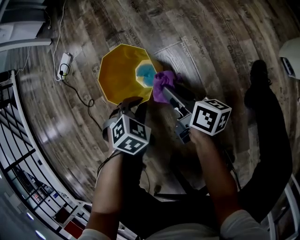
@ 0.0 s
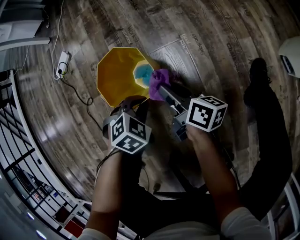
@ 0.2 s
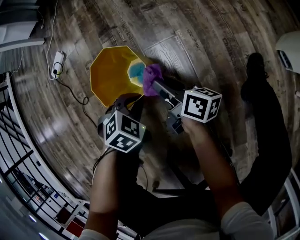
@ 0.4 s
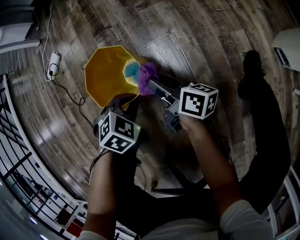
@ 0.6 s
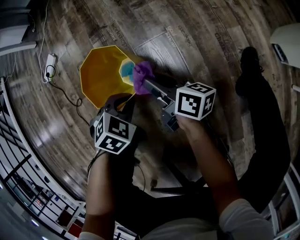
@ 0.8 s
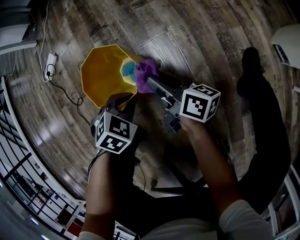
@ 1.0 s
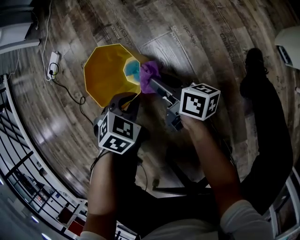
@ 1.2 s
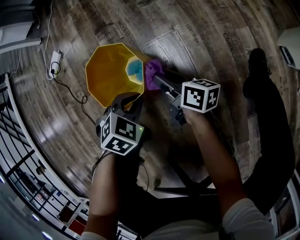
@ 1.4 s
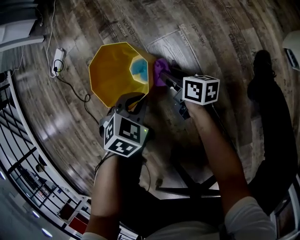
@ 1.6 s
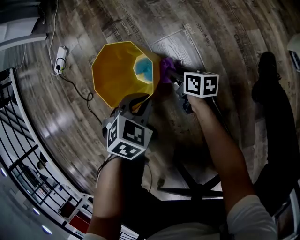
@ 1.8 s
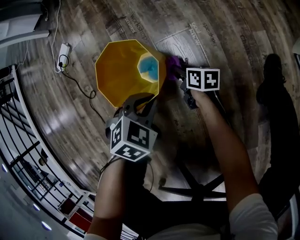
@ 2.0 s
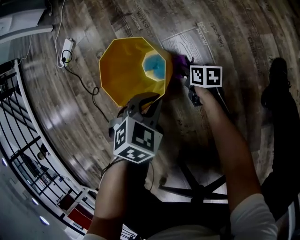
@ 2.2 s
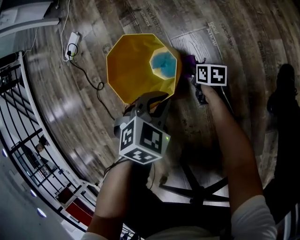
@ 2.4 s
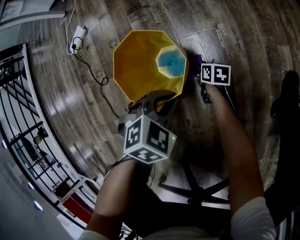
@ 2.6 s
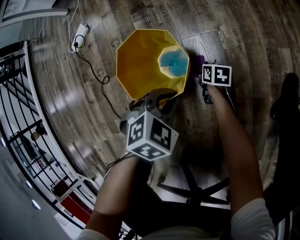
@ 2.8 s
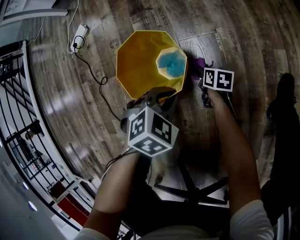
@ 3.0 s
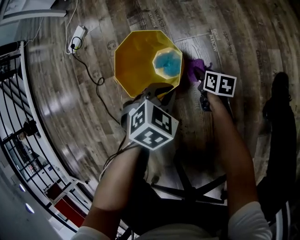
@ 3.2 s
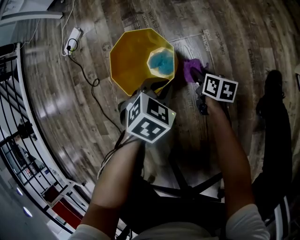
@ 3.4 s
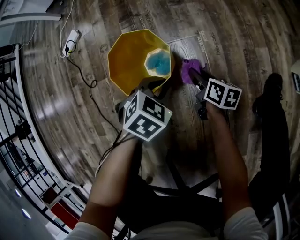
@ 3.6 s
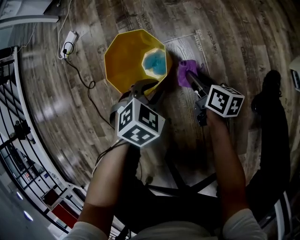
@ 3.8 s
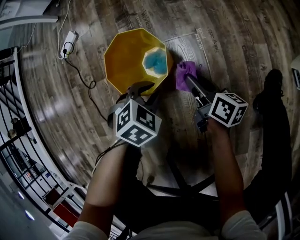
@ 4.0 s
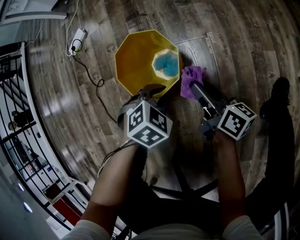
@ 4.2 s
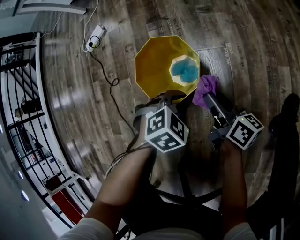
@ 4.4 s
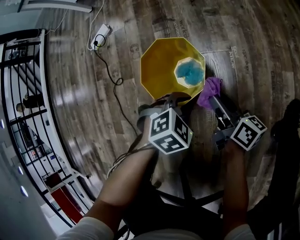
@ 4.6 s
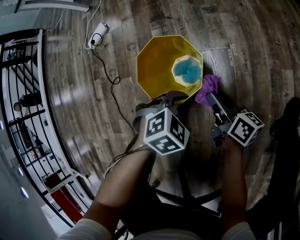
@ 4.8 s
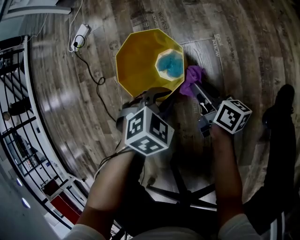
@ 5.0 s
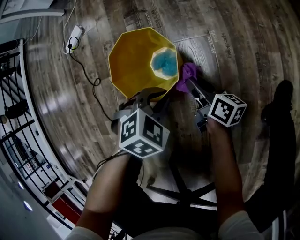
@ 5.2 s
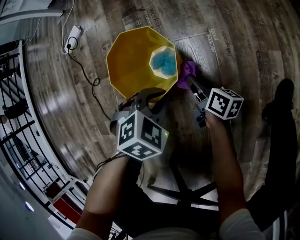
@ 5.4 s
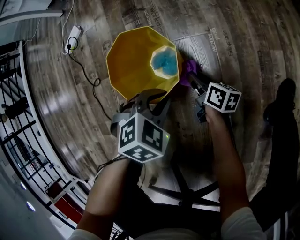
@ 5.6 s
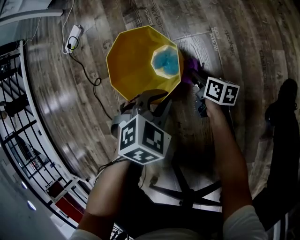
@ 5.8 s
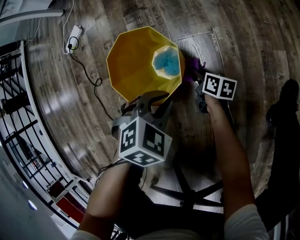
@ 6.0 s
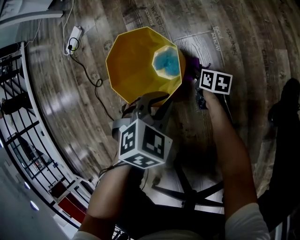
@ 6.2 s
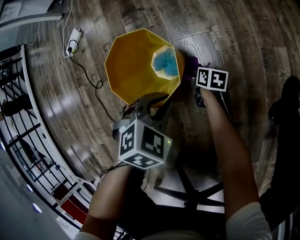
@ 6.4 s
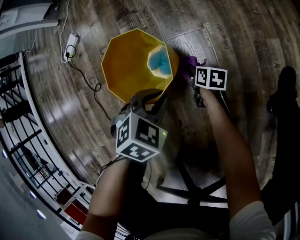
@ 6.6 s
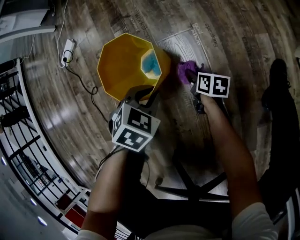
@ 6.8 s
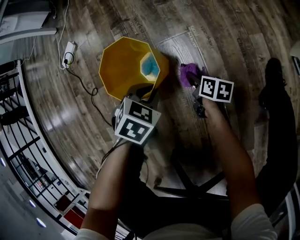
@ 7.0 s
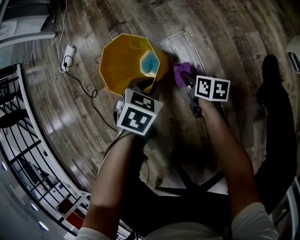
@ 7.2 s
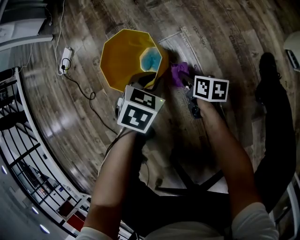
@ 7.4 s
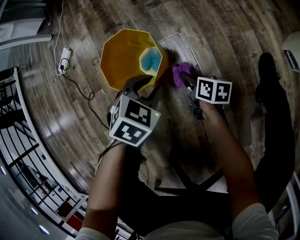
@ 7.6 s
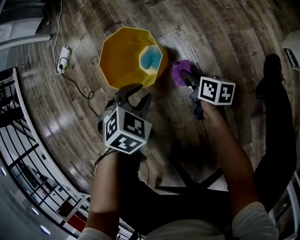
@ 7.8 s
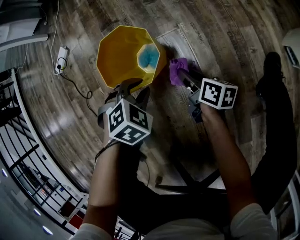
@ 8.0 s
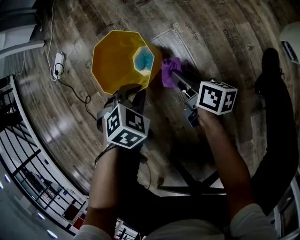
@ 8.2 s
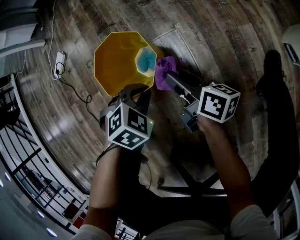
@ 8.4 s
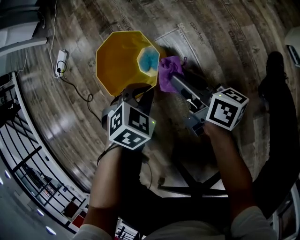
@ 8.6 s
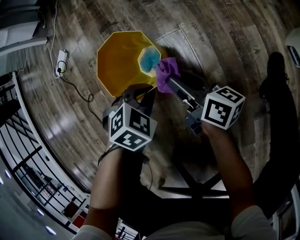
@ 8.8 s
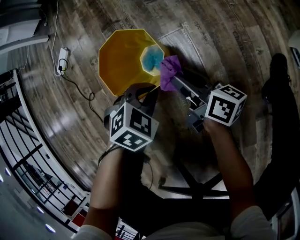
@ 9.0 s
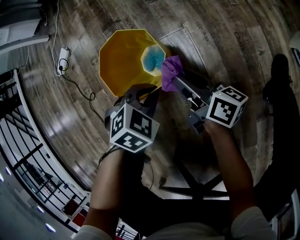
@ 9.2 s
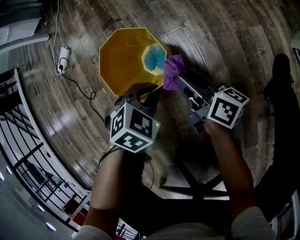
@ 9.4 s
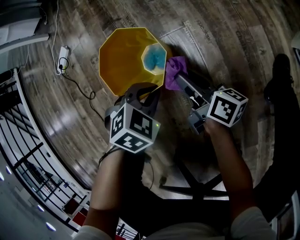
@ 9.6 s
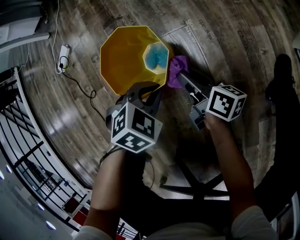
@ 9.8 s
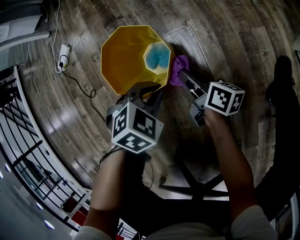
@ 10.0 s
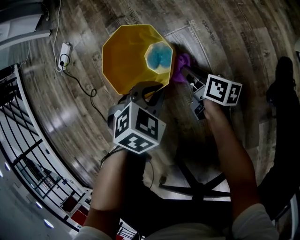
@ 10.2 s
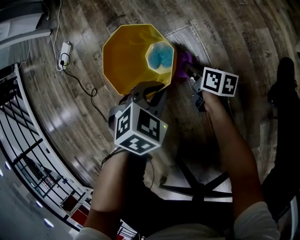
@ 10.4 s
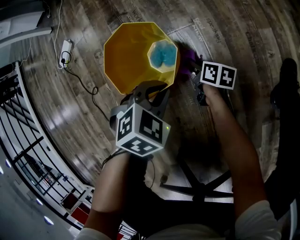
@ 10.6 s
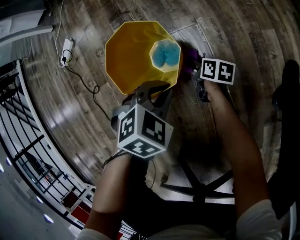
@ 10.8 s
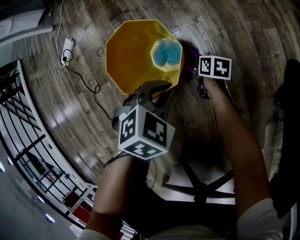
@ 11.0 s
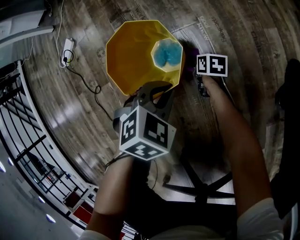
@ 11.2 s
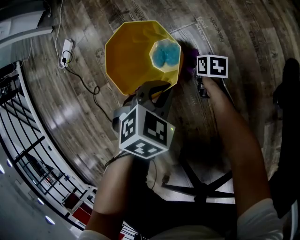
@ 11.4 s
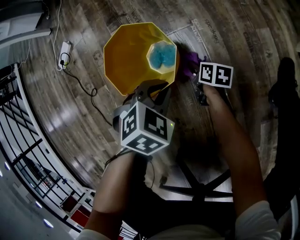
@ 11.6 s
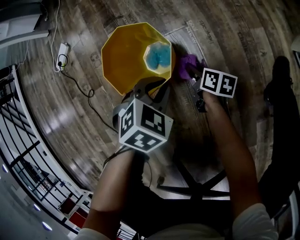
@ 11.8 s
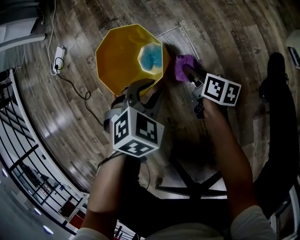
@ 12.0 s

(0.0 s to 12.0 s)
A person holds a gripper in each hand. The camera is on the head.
0.0 s - 1.6 s: The right gripper goes some 10 cm downward.
1.6 s - 3.0 s: The right gripper heads downward, covering some 15 cm, and changes its angle by about 30 degrees.
3.0 s - 4.4 s: The right gripper goes approximately 25 cm upward, and tilts its fingers some 40 degrees upward.
4.4 s - 6.0 s: The right gripper moves downward, some 20 cm, and changes its angle by approximately 30 degrees.
6.0 s - 7.6 s: The left gripper changes place by some 5 cm. Meanwhile the right gripper heads upward and to the right, covering some 10 cm.
7.6 s - 9.0 s: The right gripper is displaced upward by approximately 10 cm, and swivels approximately 30 degrees. The left gripper closes up.
9.0 s - 10.4 s: The right gripper is displaced downward by some 15 cm, and changes its angle by about 20 degrees.
10.4 s - 12.0 s: The right gripper goes downward and returns, roughly 10 cm each way. Meanwhile the left gripper opens its fingers.

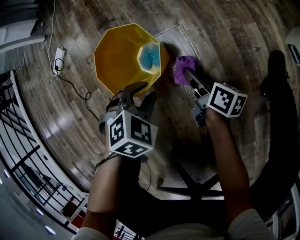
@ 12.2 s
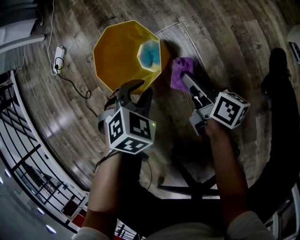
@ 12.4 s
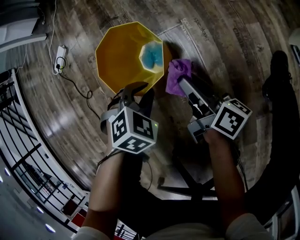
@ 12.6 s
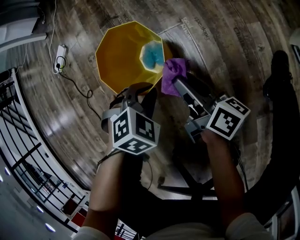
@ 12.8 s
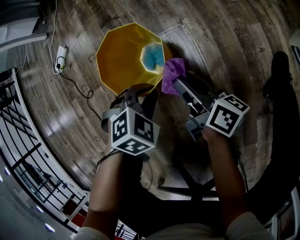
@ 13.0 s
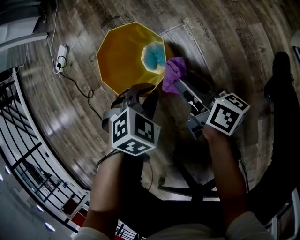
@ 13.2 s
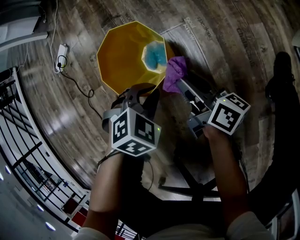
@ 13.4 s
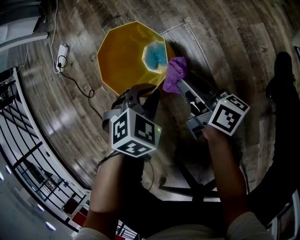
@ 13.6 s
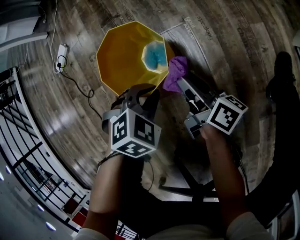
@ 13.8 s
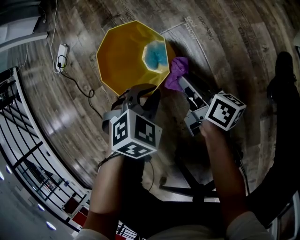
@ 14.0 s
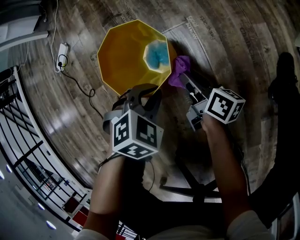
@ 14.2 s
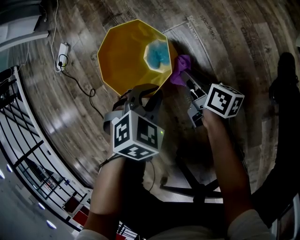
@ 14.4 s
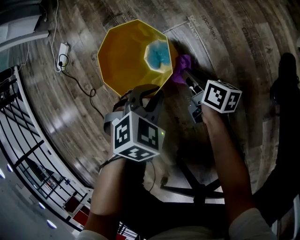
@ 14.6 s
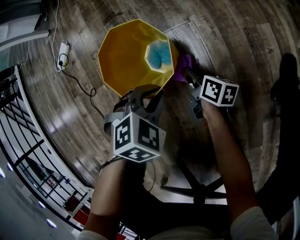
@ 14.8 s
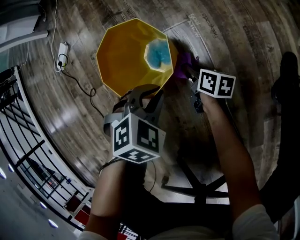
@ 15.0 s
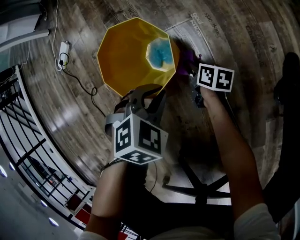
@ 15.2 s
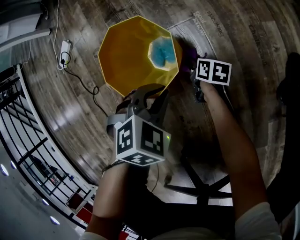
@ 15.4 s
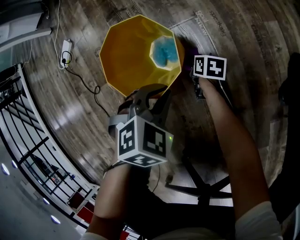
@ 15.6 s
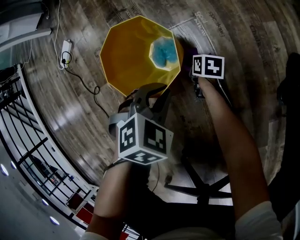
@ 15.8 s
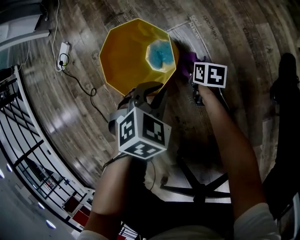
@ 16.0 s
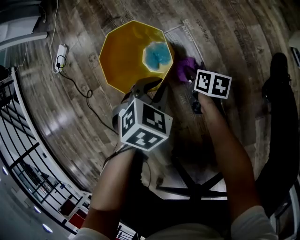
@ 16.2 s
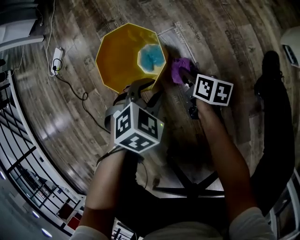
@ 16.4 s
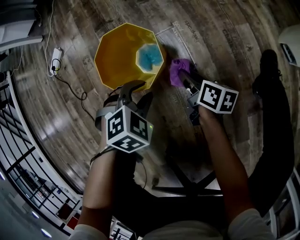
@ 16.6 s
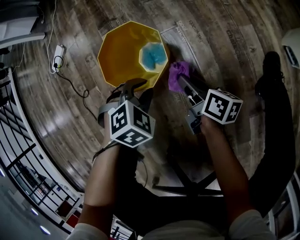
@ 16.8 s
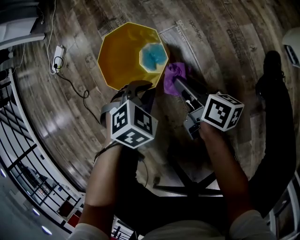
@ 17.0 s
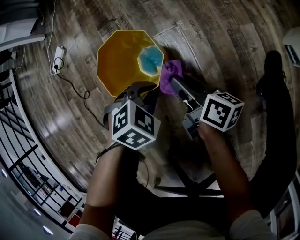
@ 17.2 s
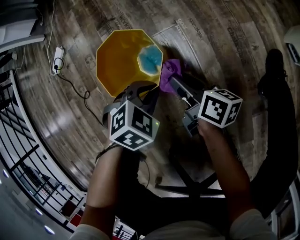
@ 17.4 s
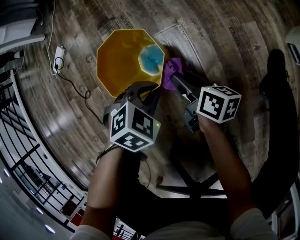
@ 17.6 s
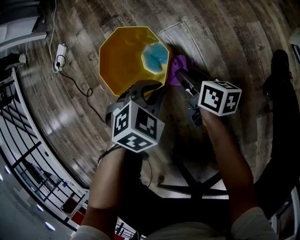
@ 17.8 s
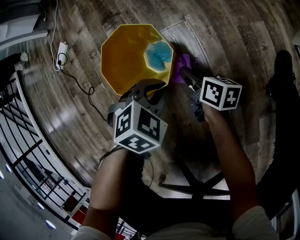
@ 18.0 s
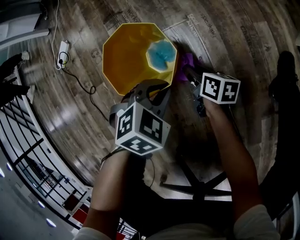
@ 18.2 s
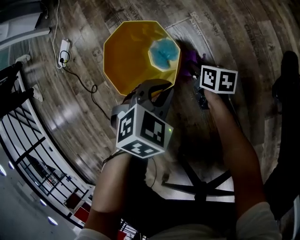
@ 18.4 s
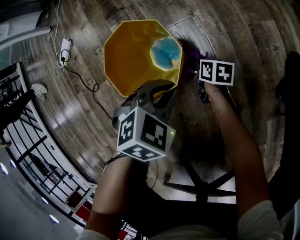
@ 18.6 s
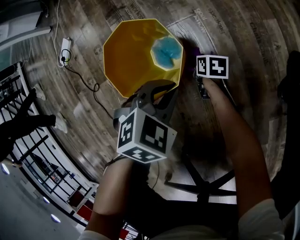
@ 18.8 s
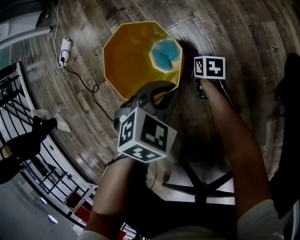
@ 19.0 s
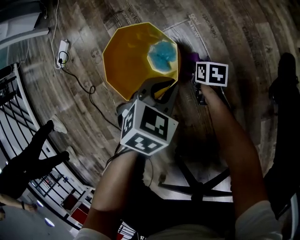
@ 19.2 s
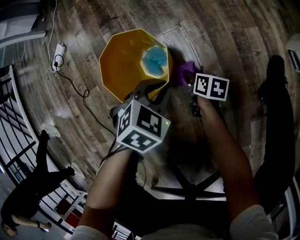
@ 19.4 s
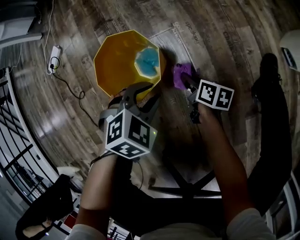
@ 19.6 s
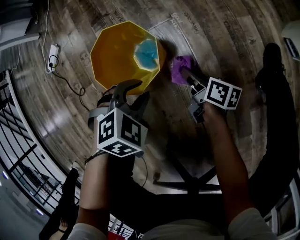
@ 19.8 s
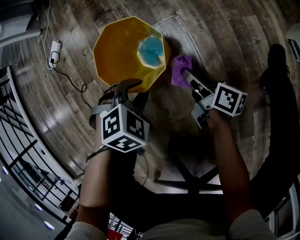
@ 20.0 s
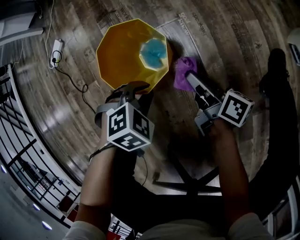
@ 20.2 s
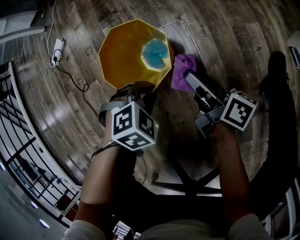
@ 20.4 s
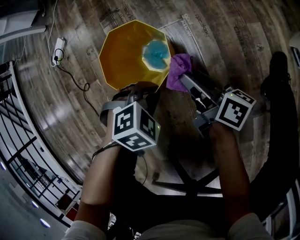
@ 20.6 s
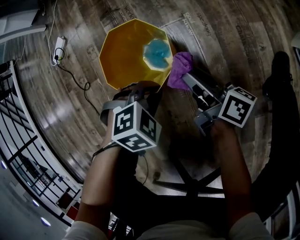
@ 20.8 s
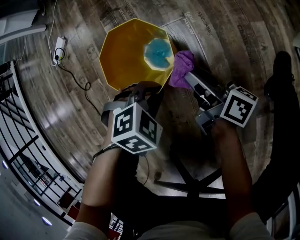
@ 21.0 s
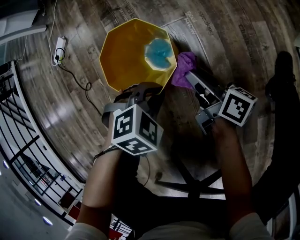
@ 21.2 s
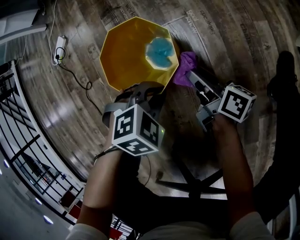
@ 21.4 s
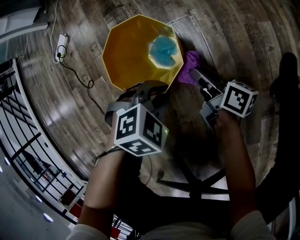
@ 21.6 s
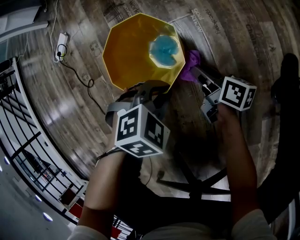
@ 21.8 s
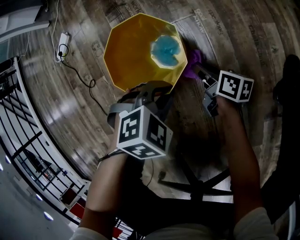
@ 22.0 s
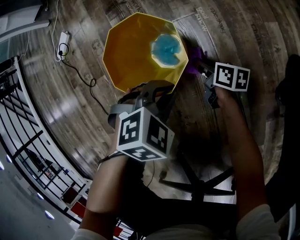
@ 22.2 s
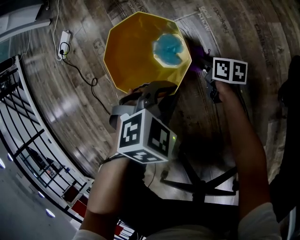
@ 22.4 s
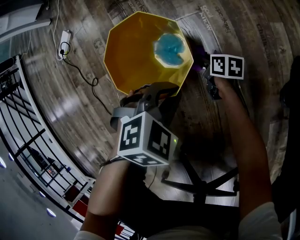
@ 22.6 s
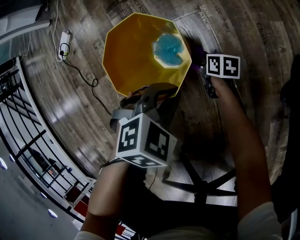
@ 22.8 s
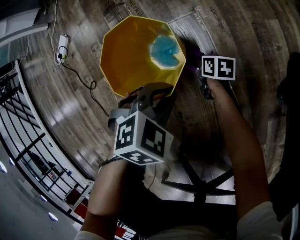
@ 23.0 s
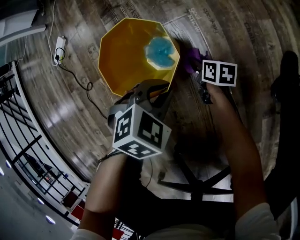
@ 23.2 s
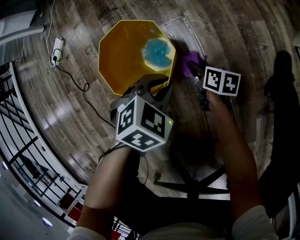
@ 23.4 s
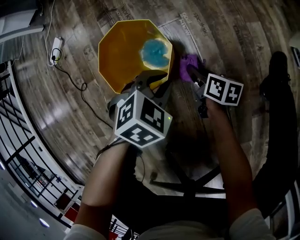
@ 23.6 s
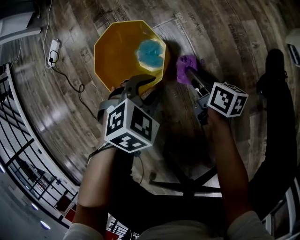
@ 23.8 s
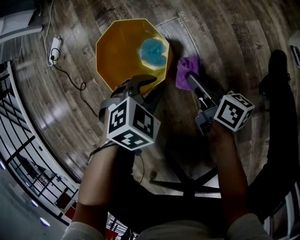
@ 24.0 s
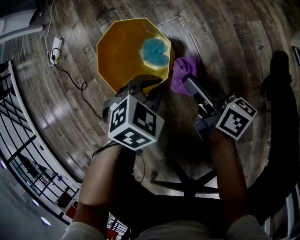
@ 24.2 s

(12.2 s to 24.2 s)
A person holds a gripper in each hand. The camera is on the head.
12.2 s - 13.8 s: The right gripper heads upward, covering some 5 cm.
13.8 s - 15.2 s: The right gripper goes approximately 20 cm downward, and points its fingers approximately 30 degrees further downward.
15.2 s - 16.6 s: The right gripper shifts approximately 15 cm upward and to the right. The left gripper opens up.
16.6 s - 18.2 s: The left gripper closes, while the right gripper moves downward, some 5 cm.
18.2 s - 19.8 s: The left gripper opens. The right gripper moves approximately 10 cm downward and comes back.
19.8 s - 21.2 s: The right gripper is displaced upward by about 10 cm. Meanwhile the left gripper closes.
21.2 s - 22.6 s: The right gripper moves downward, approximately 20 cm, and angles its fingers downward, by some 30 degrees.
22.6 s - 24.2 s: The right gripper is displaced upward by about 25 cm, and tilts its fingers approximately 30 degrees upward.
